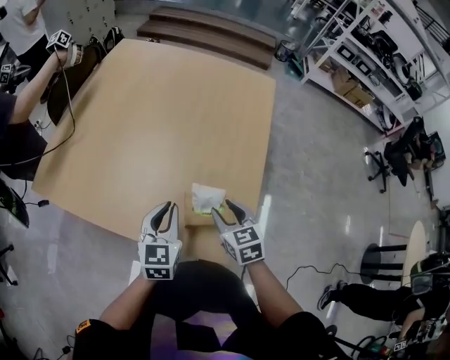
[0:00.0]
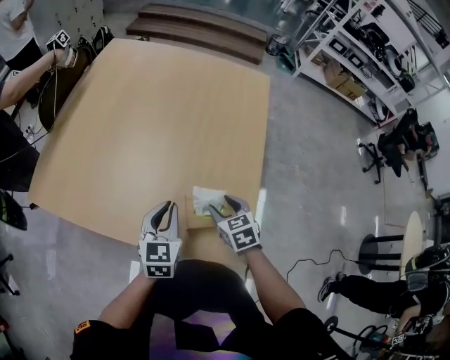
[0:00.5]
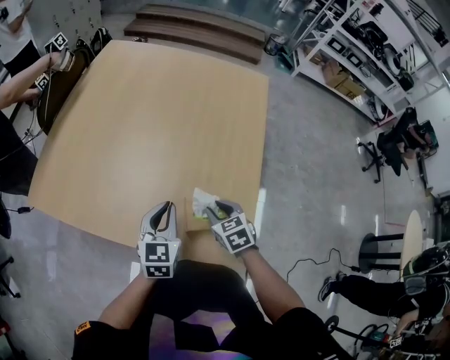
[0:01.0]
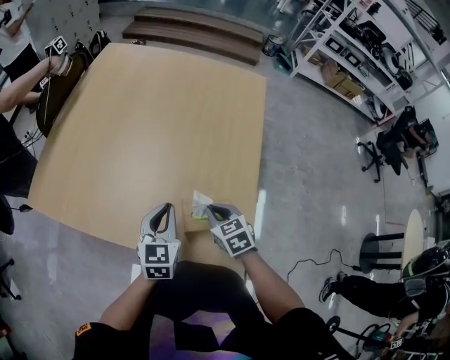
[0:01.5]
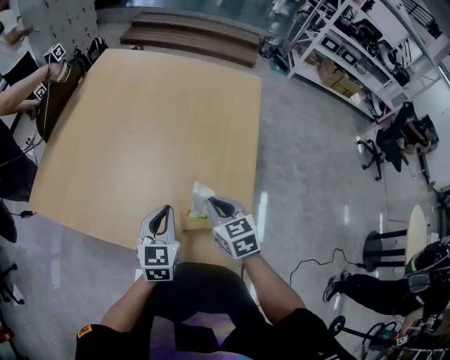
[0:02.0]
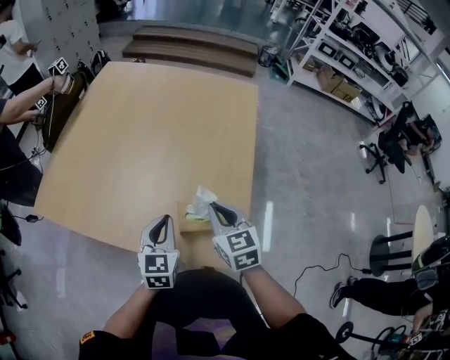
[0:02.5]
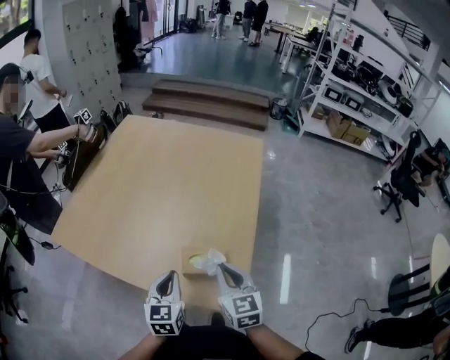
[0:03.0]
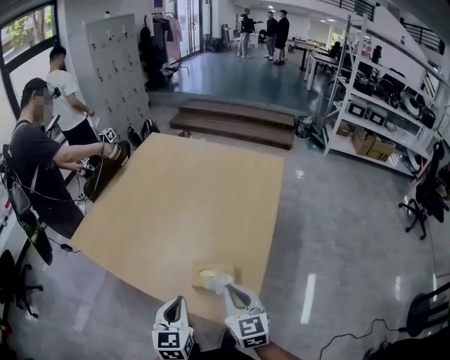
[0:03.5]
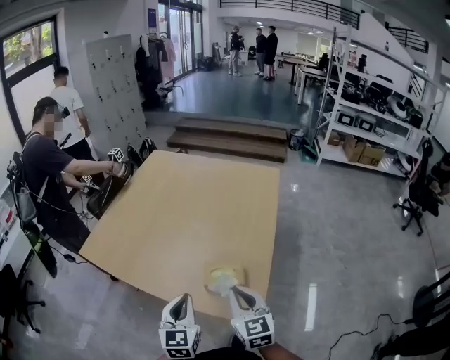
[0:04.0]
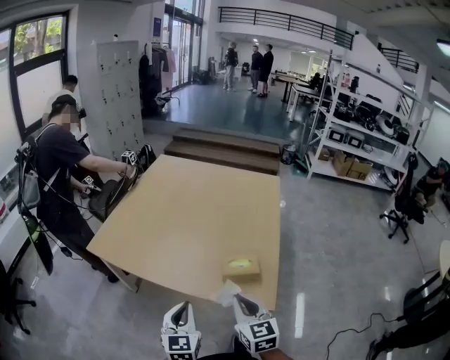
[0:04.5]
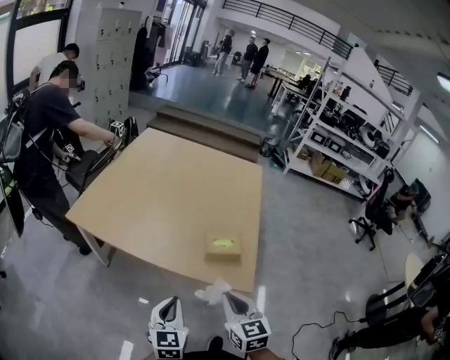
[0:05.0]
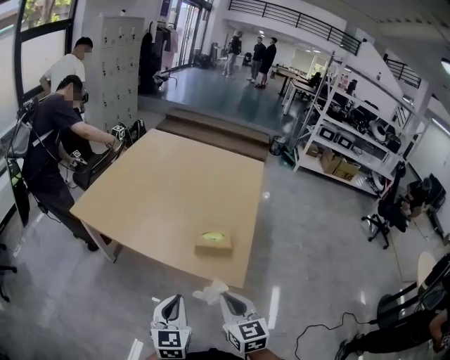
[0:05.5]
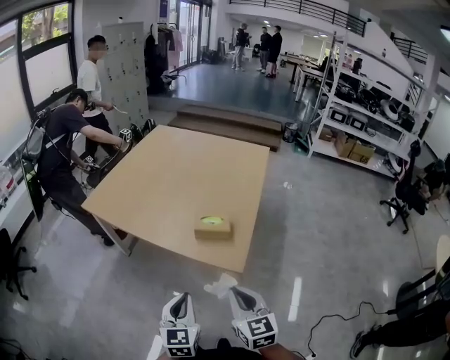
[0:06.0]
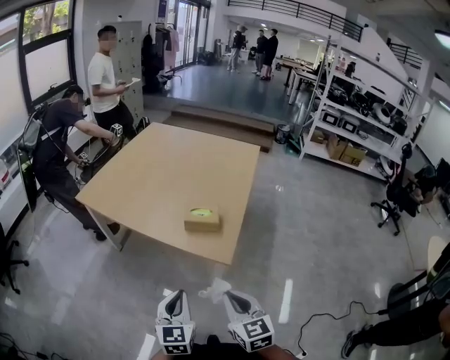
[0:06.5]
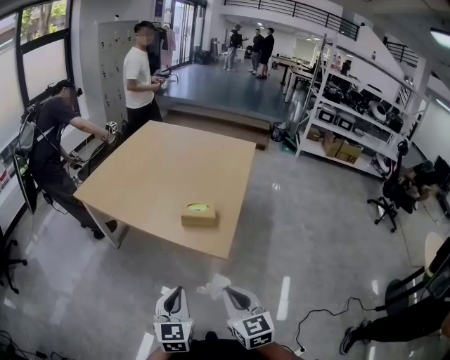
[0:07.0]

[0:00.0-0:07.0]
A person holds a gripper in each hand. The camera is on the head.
0:00.0 to 0:02.0: The right gripper reaches roughly 5 cm downward, then returns, and closes up.
0:02.0 to 0:03.5: The right gripper travels backward and upward by approximately 10 cm. Meanwhile the left gripper is displaced backward by approximately 10 cm.
0:03.5 to 0:05.0: The two grippers go about 20 cm backward and to the left.
0:05.0 to 0:07.0: Both grippers move backward and to the right, roughly 20 cm.

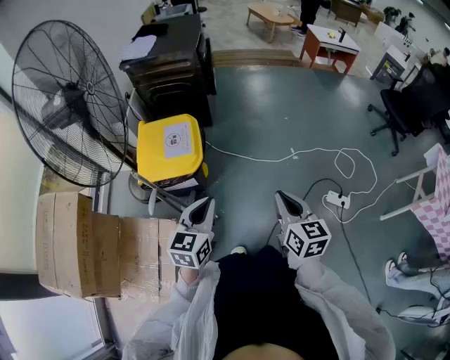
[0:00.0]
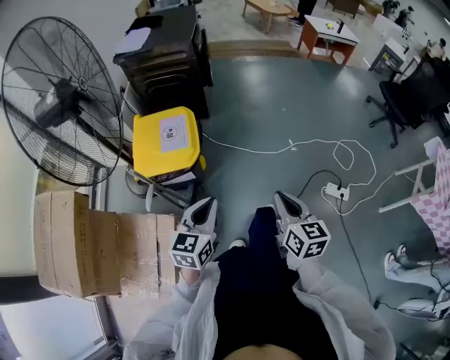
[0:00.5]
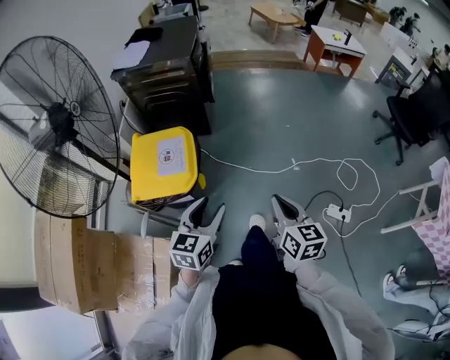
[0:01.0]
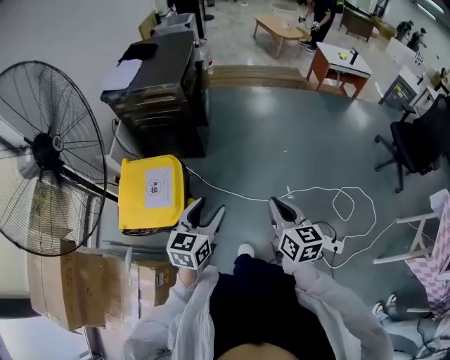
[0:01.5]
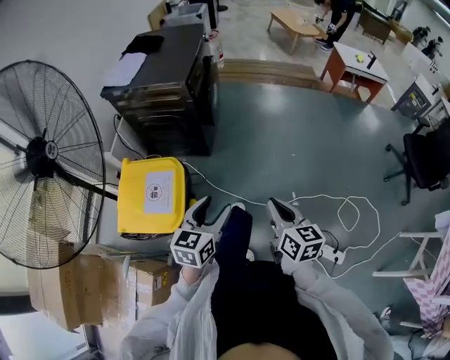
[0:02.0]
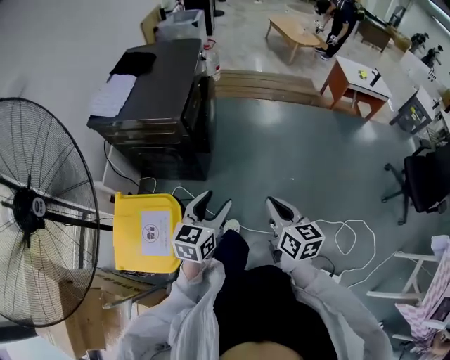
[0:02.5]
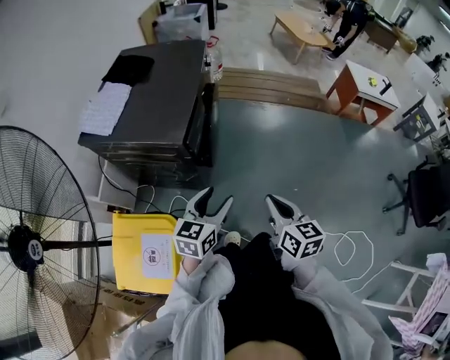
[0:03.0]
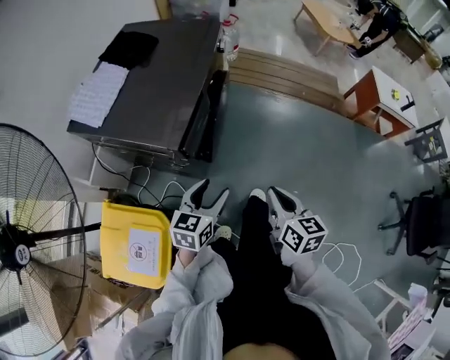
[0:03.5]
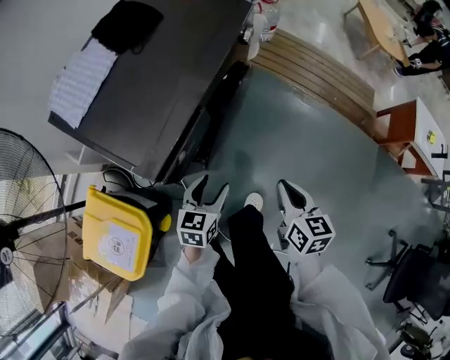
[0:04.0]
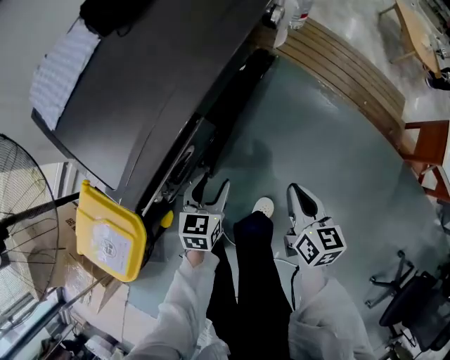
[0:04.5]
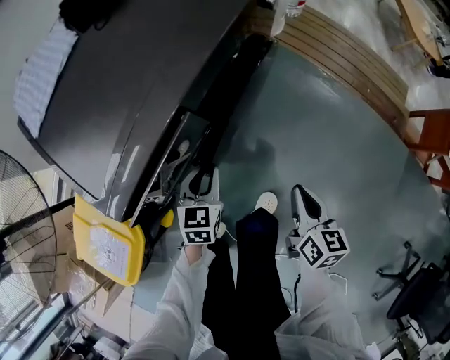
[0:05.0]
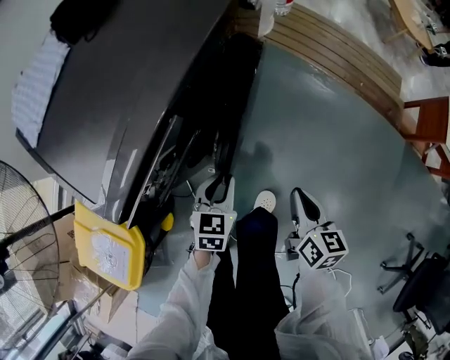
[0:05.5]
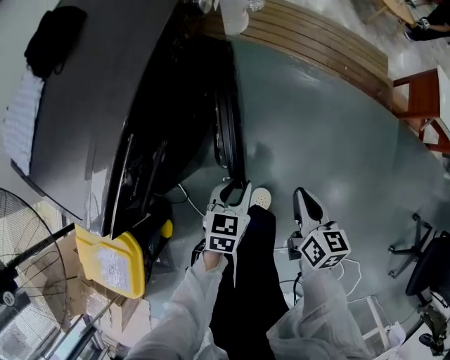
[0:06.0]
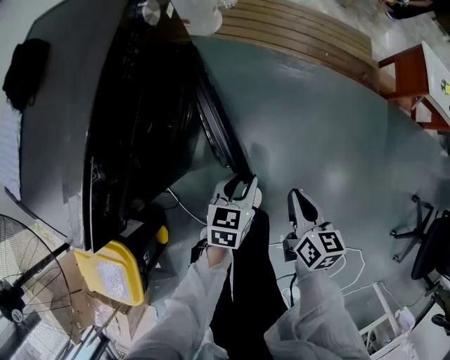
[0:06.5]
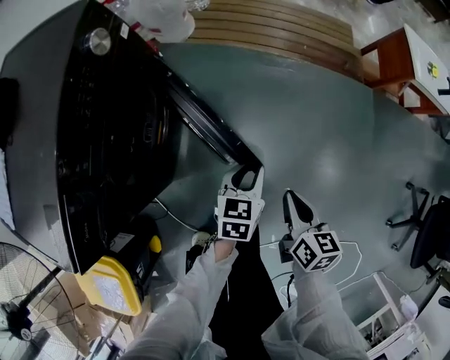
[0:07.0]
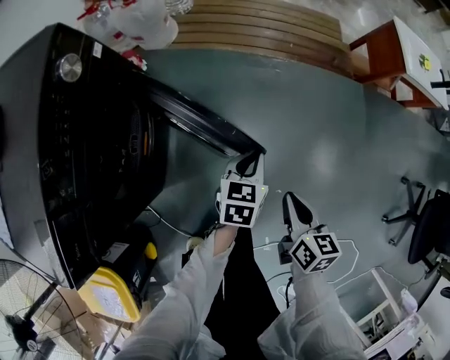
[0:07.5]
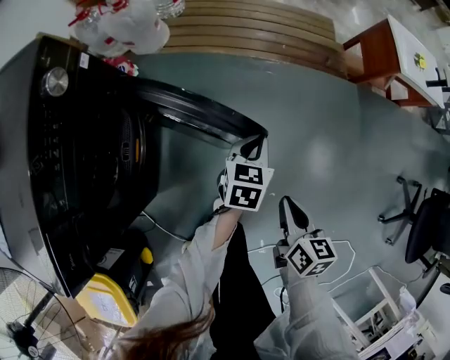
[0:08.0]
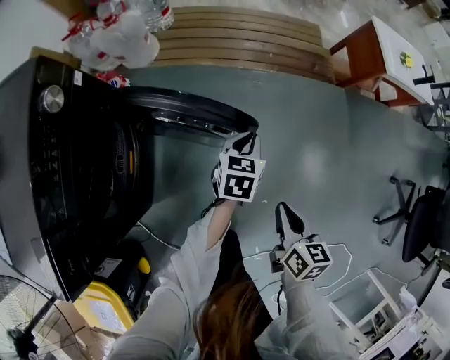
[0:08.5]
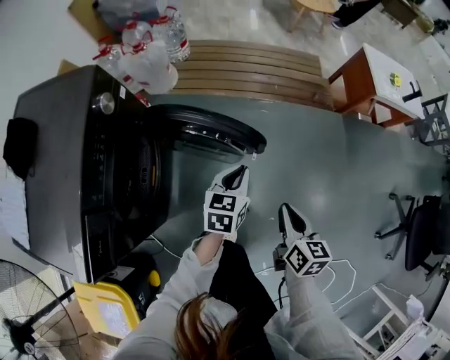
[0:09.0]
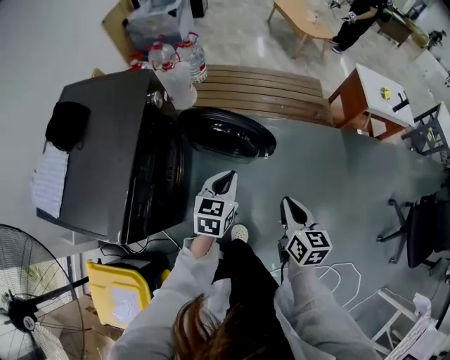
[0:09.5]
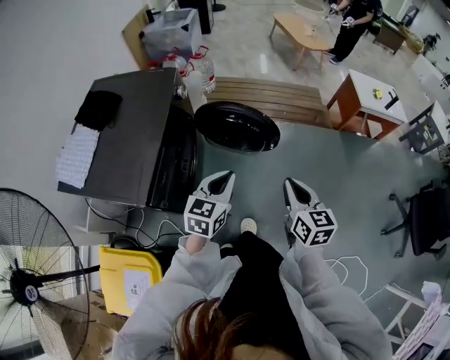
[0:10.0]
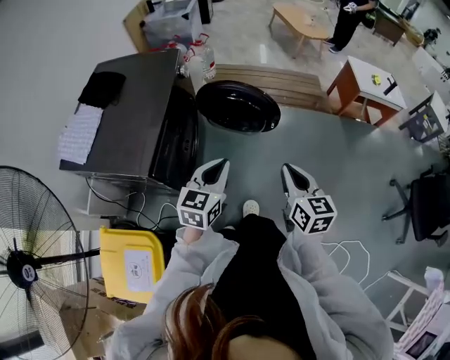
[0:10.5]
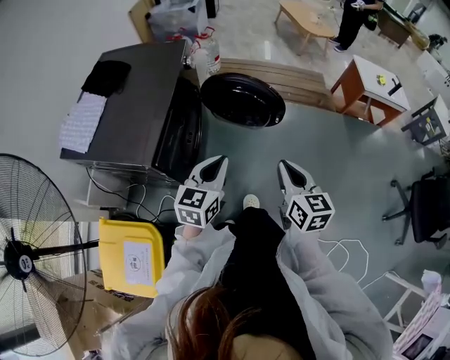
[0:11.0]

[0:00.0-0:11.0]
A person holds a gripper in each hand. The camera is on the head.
0:00.0 to 0:02.0: The two grippers go about 35 cm forward. The left gripper opens its fingers.
0:02.0 to 0:03.5: The pair of grippers is taken forward, approximately 50 cm.
0:03.5 to 0:05.5: The right gripper shifts roughly 30 cm downward, forward and to the right; the left gripper travels downward and forward by about 30 cm, turns by approximately 30 degrees, and closes its fingers.
0:05.5 to 0:07.5: The left gripper moves approximately 35 cm, and turns by approximately 30 degrees, while the right gripper changes place by about 25 cm, and changes its angle by roughly 20 degrees.
0:07.5 to 0:09.0: Both grippers travel together upward, about 10 cm.
0:09.0 to 0:11.0: The grippers both shift backward, upward and to the left by approximately 40 cm. The right gripper turns by some 20 degrees. The left gripper rotates about 20 degrees.

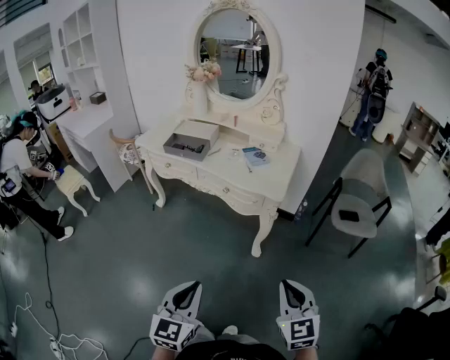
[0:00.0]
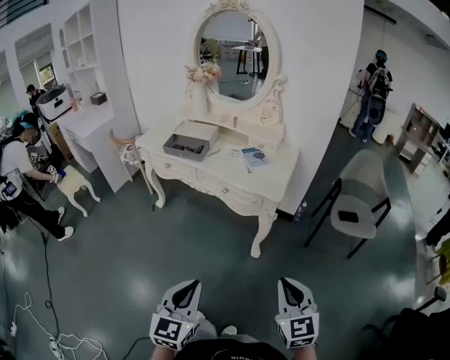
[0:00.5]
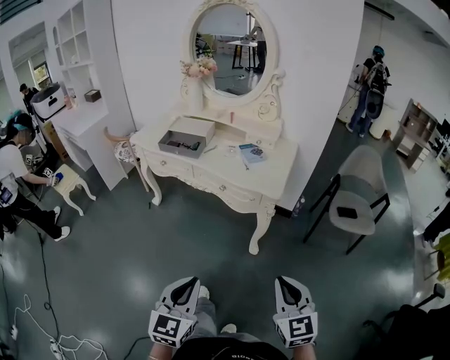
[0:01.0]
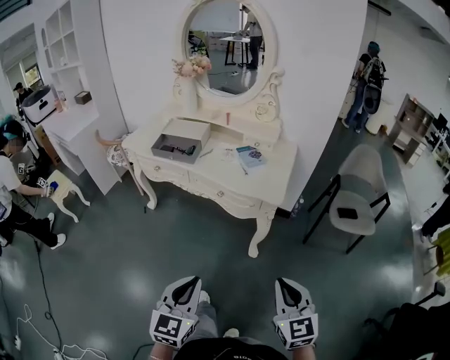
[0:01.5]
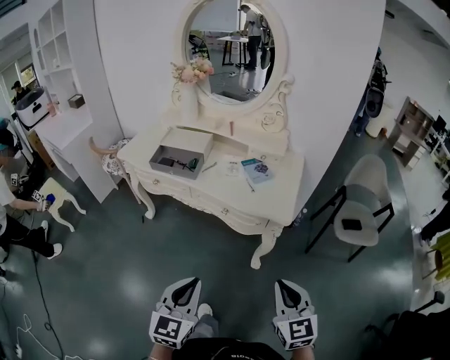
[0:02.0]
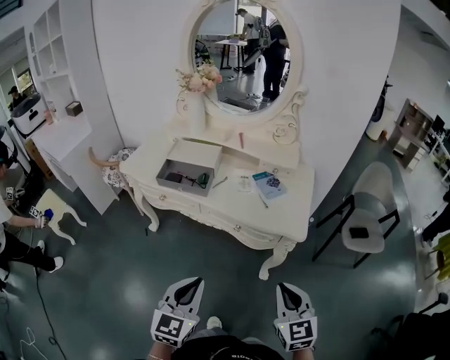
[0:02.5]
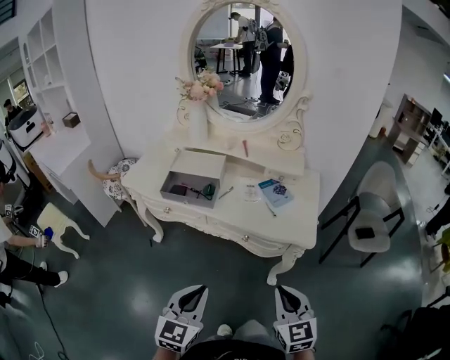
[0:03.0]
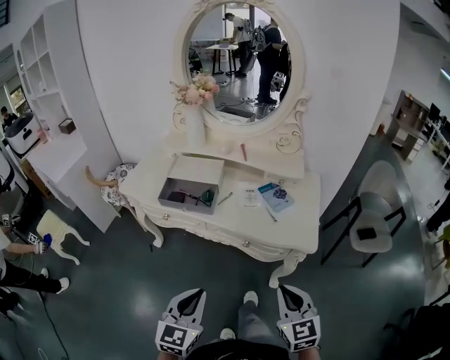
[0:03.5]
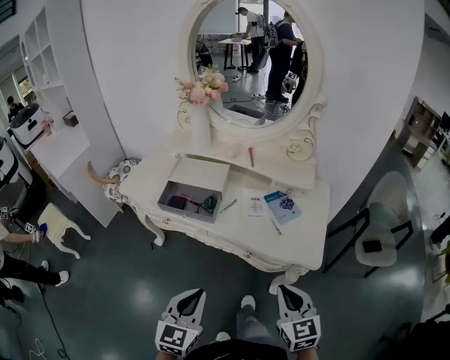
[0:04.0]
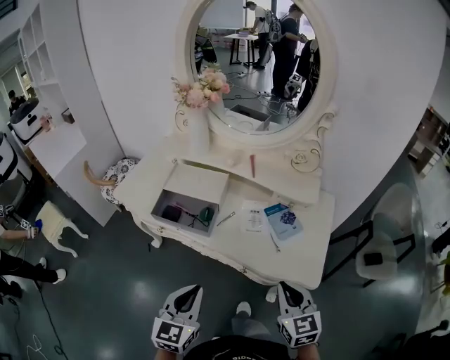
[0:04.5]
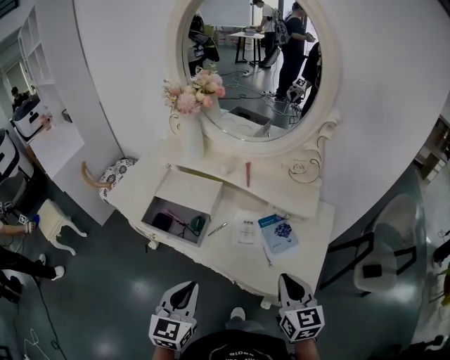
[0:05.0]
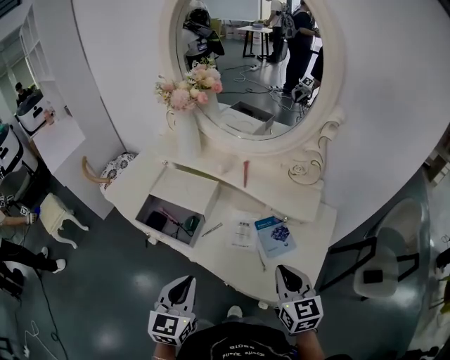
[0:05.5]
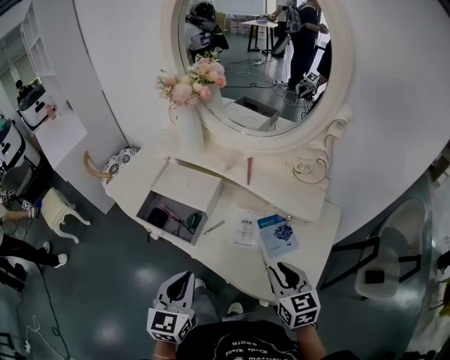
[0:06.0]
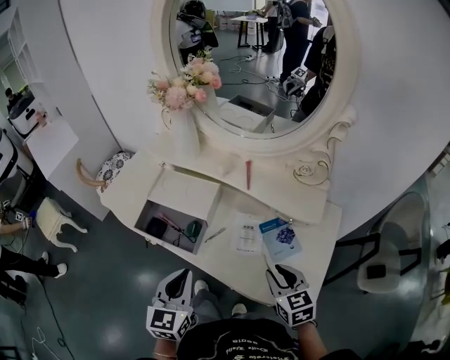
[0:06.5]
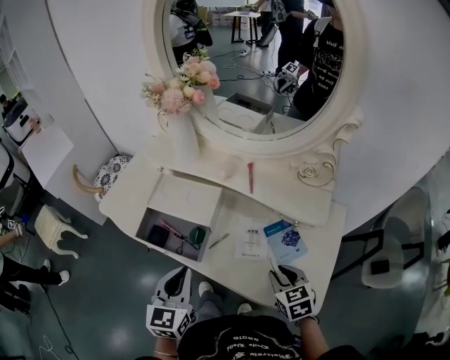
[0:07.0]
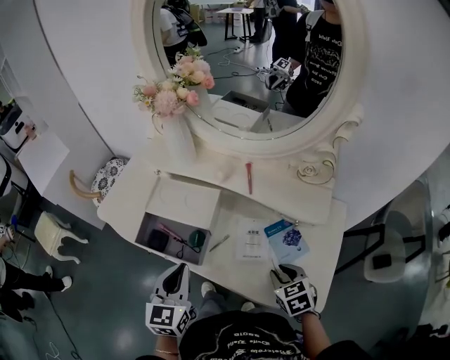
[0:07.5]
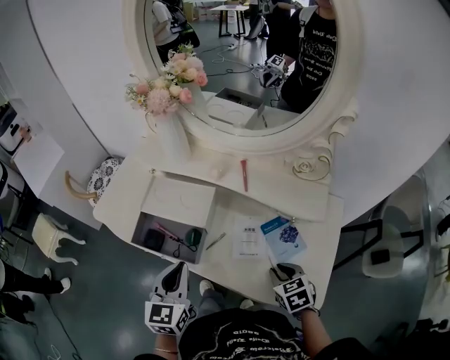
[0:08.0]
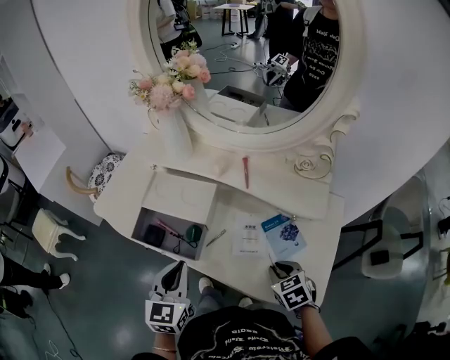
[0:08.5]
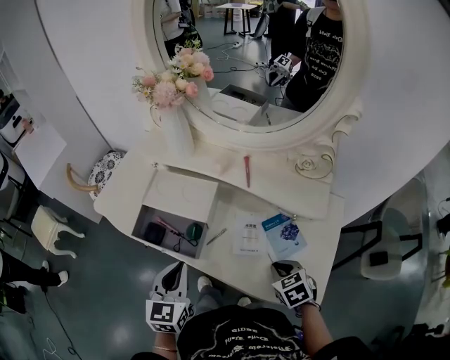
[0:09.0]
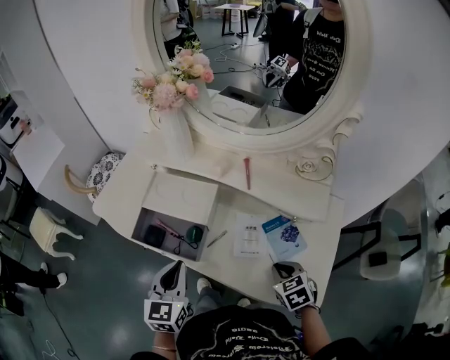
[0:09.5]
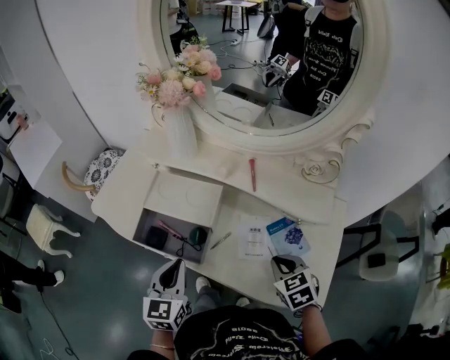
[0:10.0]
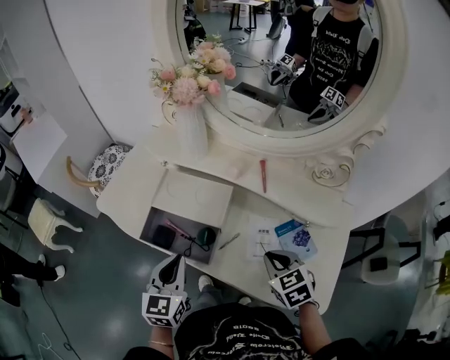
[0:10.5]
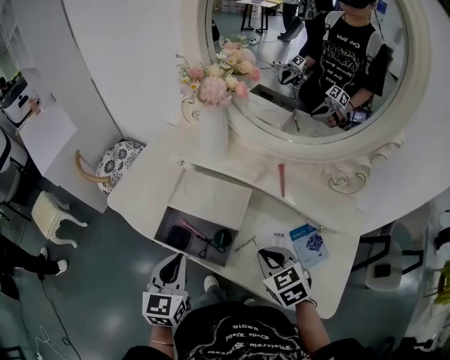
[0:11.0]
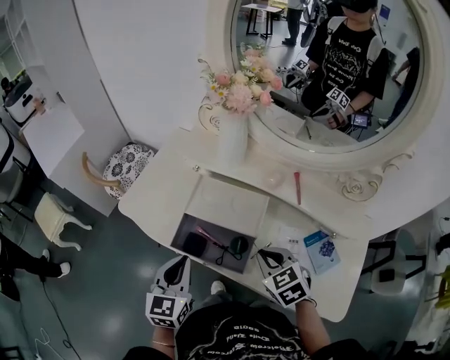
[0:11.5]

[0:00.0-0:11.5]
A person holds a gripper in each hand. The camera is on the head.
0:00.0 to 0:02.0: The right gripper is displaced forward and to the left by some 15 cm. Meanwhile the left gripper goes roughly 15 cm forward.
0:02.0 to 0:04.0: The grippers both shift forward and to the left by roughly 20 cm.
0:04.0 to 0:06.0: Both grippers travel together forward, about 20 cm. The right gripper opens.
0:06.0 to 0:07.5: The right gripper heads downward, covering roughly 10 cm, and changes its angle by about 20 degrees. Meanwhile the left gripper moves forward, about 10 cm.
0:07.5 to 0:09.5: The right gripper closes its fingers.
0:09.5 to 0:11.5: The right gripper heads to the left and forward, covering approximately 20 cm; the left gripper shifts roughly 15 cm to the left and forward.
